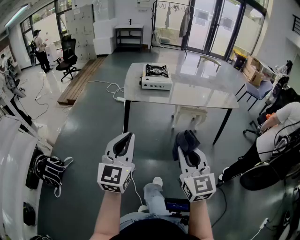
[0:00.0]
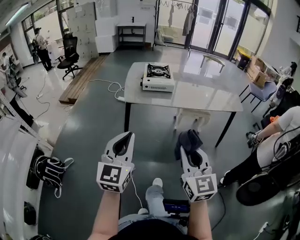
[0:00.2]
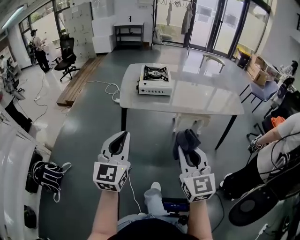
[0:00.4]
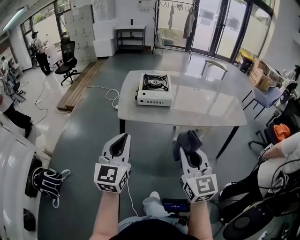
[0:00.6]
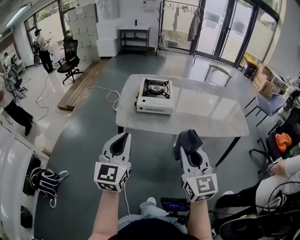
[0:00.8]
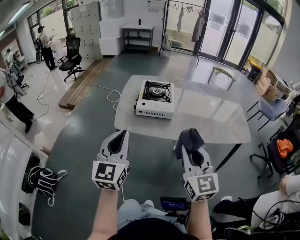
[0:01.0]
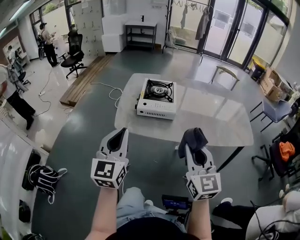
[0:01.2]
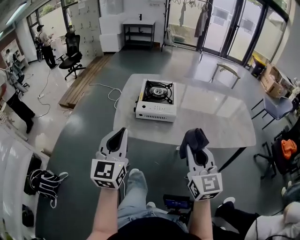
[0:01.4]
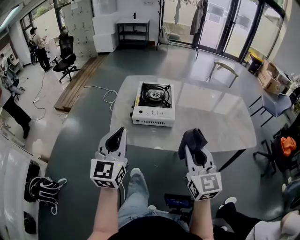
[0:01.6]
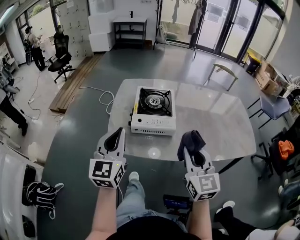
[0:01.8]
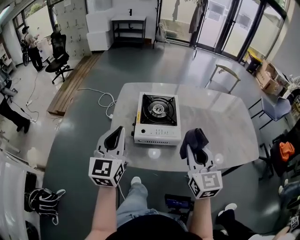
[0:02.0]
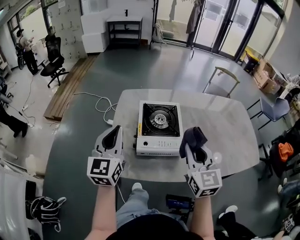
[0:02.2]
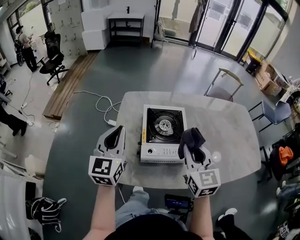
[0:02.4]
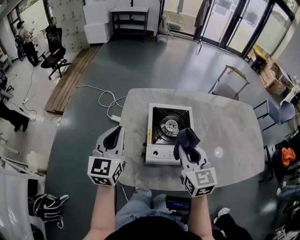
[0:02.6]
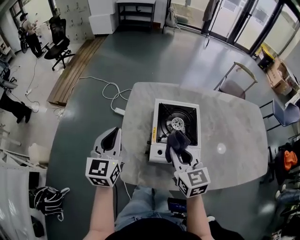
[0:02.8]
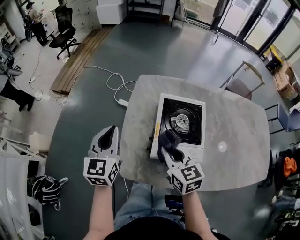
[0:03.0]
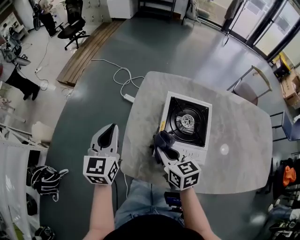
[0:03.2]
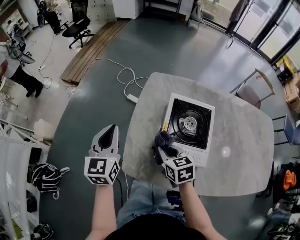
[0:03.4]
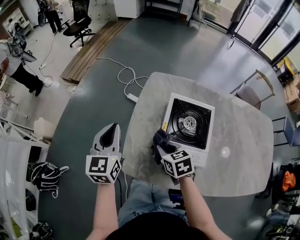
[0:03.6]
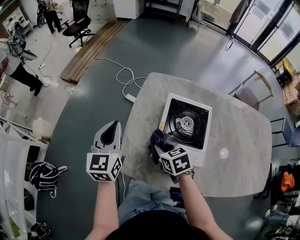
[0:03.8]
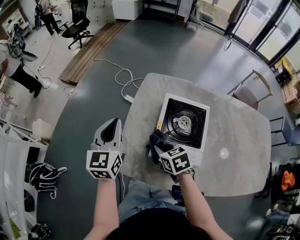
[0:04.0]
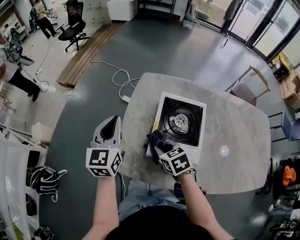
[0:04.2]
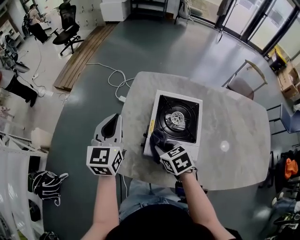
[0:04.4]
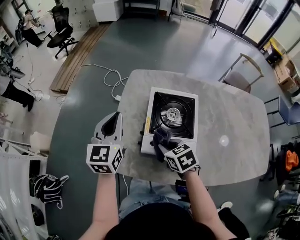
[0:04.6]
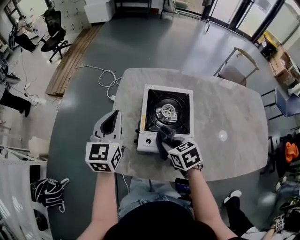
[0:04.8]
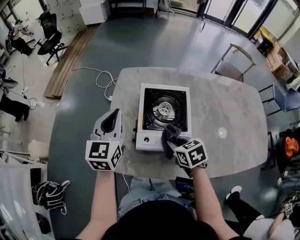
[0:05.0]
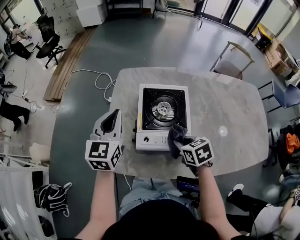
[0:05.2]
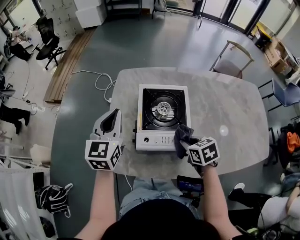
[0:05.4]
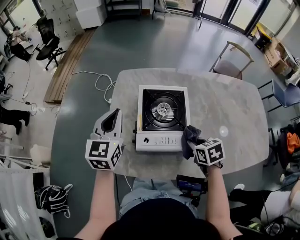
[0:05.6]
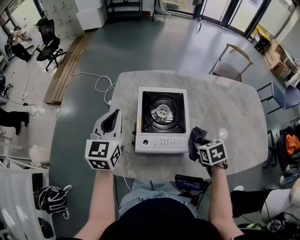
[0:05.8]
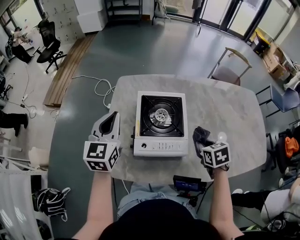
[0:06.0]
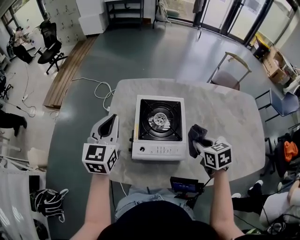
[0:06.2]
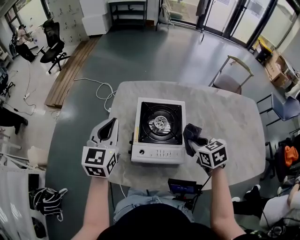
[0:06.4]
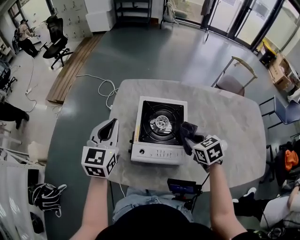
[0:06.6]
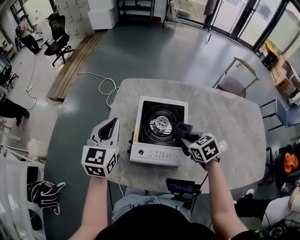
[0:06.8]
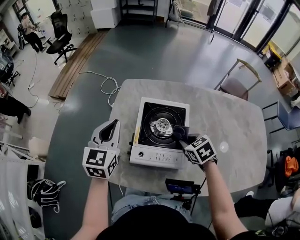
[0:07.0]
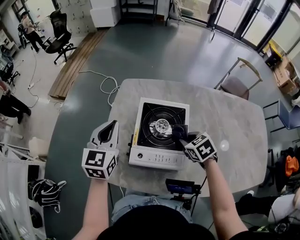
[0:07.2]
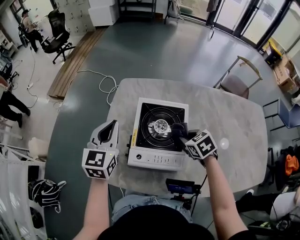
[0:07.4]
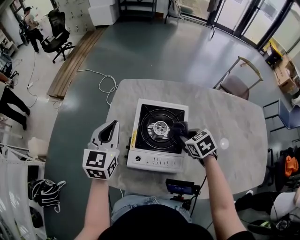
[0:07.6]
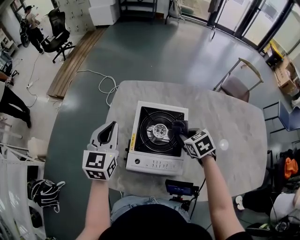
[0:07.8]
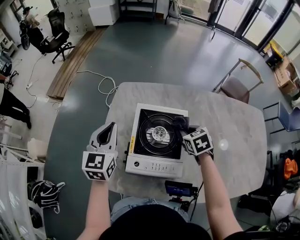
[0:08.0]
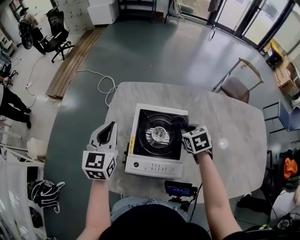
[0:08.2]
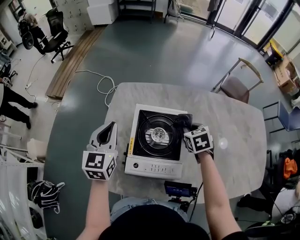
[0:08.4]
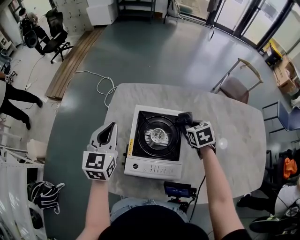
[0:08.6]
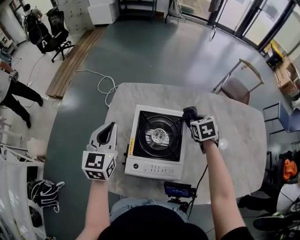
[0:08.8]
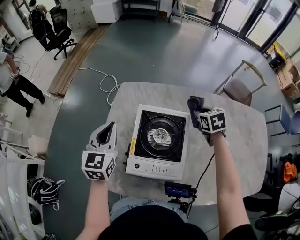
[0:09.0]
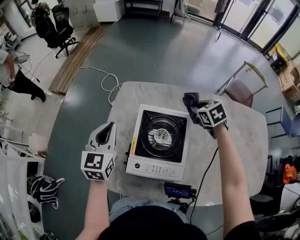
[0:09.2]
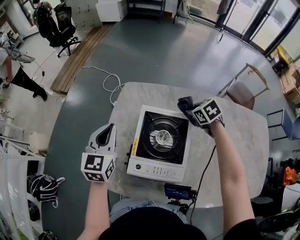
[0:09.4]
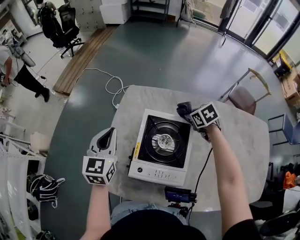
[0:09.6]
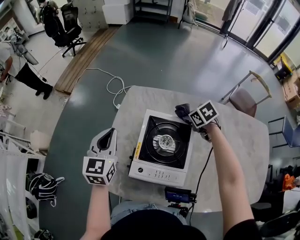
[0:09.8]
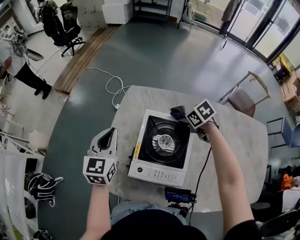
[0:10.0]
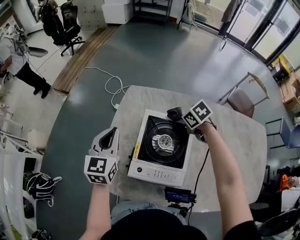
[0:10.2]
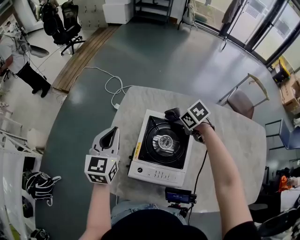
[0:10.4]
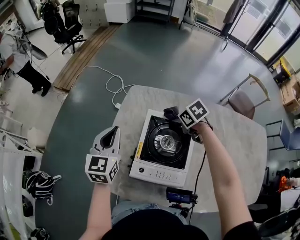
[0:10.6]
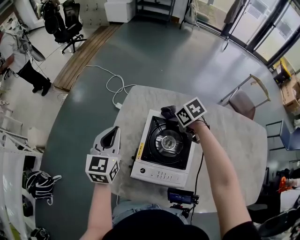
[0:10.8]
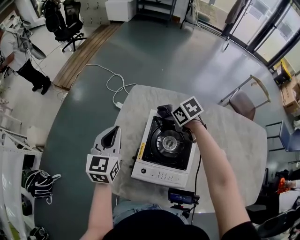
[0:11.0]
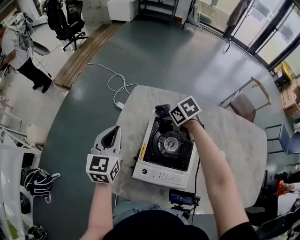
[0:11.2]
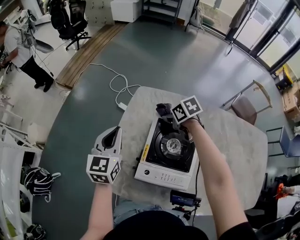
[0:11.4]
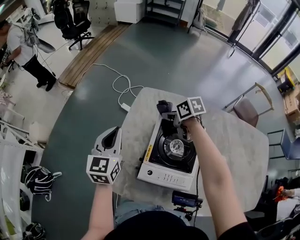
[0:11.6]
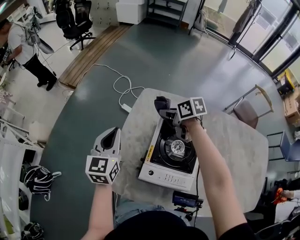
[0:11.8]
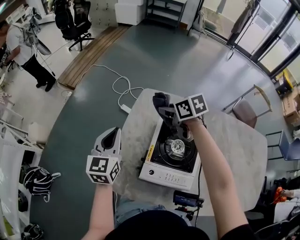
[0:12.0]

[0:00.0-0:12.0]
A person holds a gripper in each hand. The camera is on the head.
0:00.0 to 0:01.6: Both grippers travel together forward, roughly 40 cm.
0:01.6 to 0:03.0: The right gripper heads forward, to the left and downward, covering approximately 35 cm, and swivels approximately 30 degrees. The left gripper moves forward and to the left, some 30 cm.
0:03.0 to 0:04.4: The right gripper is displaced downward by about 10 cm, and rotates some 30 degrees.
0:04.4 to 0:06.0: The right gripper shifts approximately 25 cm to the right, and turns by approximately 30 degrees, while the left gripper shifts roughly 5 cm to the right.
0:06.0 to 0:07.6: The right gripper heads forward, covering roughly 10 cm, and rotates approximately 20 degrees.
0:07.6 to 0:09.0: The right gripper shifts approximately 15 cm forward and to the right.
0:09.0 to 0:10.4: The right gripper moves approximately 15 cm, and rotates about 30 degrees.
0:10.4 to 0:12.0: The right gripper heads forward, to the left and upward, covering approximately 20 cm, and rotates about 20 degrees. Meanwhile the left gripper shifts some 5 cm to the left.

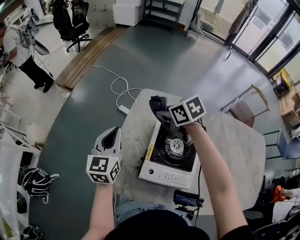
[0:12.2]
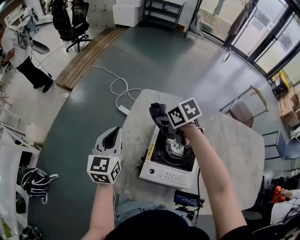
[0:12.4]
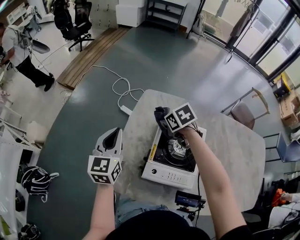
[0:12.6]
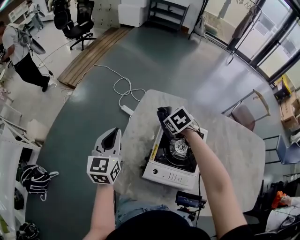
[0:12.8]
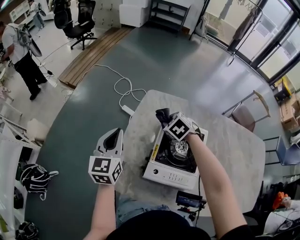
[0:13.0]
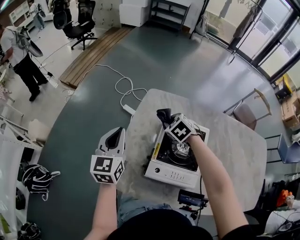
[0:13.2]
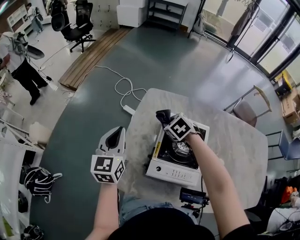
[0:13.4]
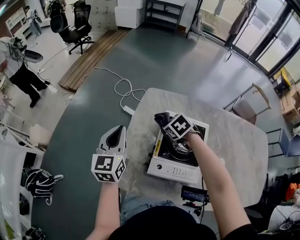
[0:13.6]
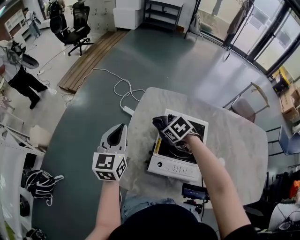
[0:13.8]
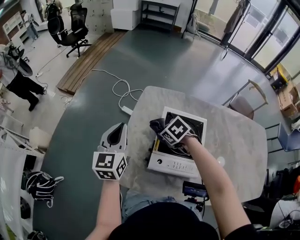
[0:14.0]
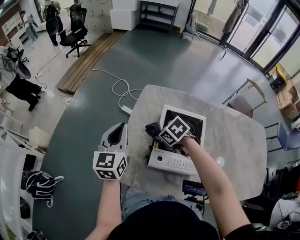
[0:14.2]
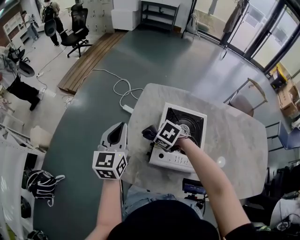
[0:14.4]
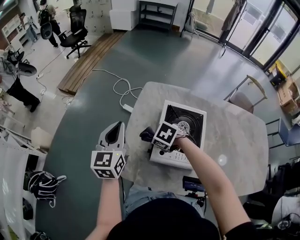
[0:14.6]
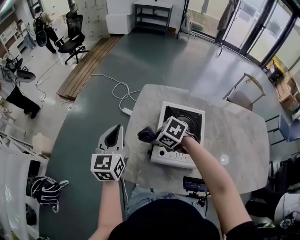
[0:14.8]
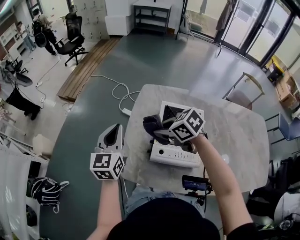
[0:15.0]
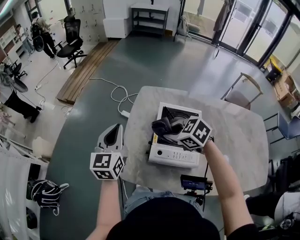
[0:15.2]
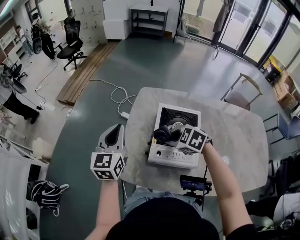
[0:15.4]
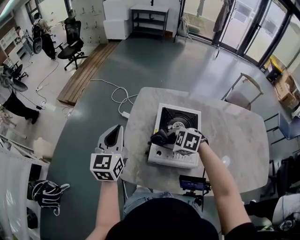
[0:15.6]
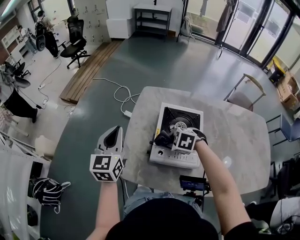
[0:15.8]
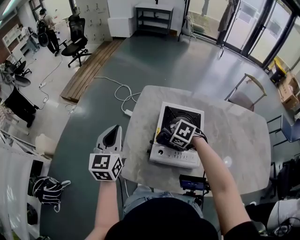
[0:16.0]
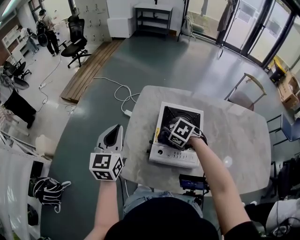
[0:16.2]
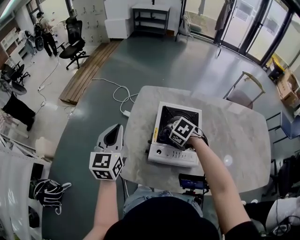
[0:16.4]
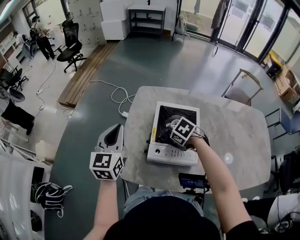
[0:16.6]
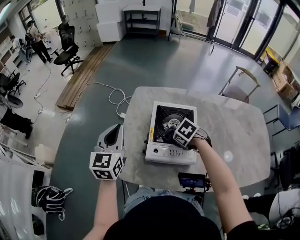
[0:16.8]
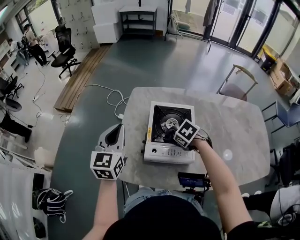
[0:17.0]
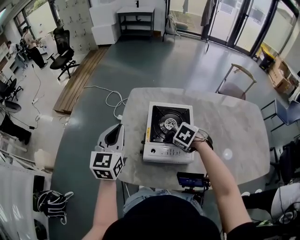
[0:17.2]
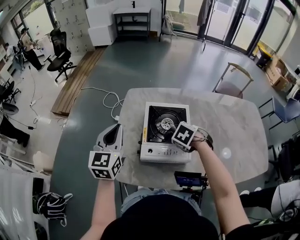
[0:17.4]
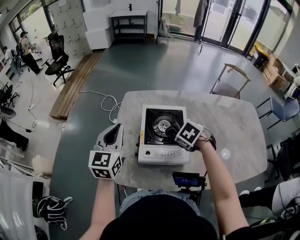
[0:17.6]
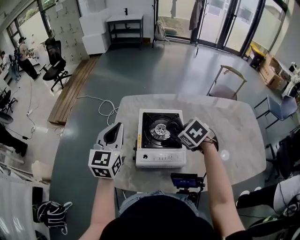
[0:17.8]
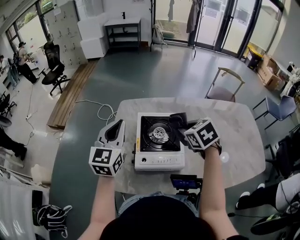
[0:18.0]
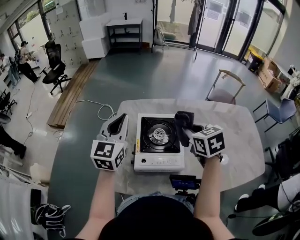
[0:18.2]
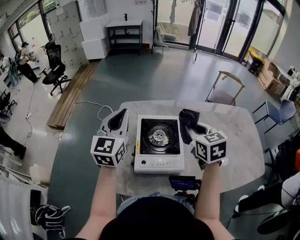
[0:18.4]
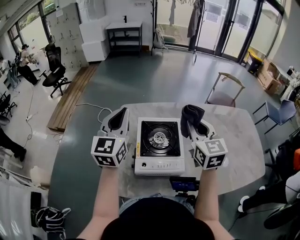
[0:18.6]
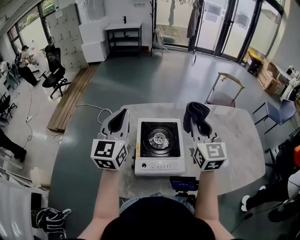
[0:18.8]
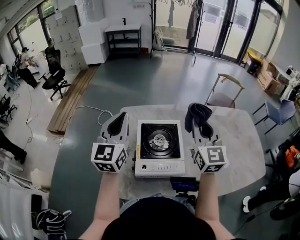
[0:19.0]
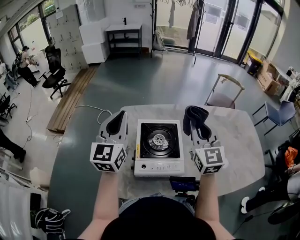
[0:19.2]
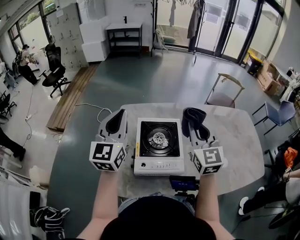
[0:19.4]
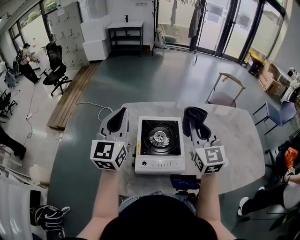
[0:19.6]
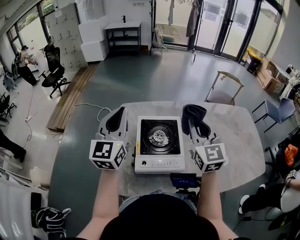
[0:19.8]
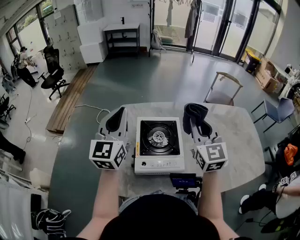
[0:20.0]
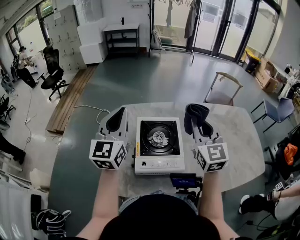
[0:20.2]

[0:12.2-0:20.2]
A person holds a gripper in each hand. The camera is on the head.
0:12.2 to 0:13.8: The right gripper travels downward and backward by some 10 cm, and rotates about 20 degrees.
0:13.8 to 0:15.4: The left gripper changes place by approximately 5 cm. Meanwhile the right gripper heads backward and upward, covering some 15 cm, and rotates approximately 20 degrees.
0:15.4 to 0:17.0: The right gripper ends up about 10 cm from where it was, and changes its angle by roughly 30 degrees.
0:17.0 to 0:18.6: The right gripper shifts approximately 25 cm upward, and tilts its fingers approximately 60 degrees upward. Meanwhile the left gripper ends up about 15 cm from where it was.
0:18.6 to 0:20.2: The grippers stay close to where they were, moving slightly.
